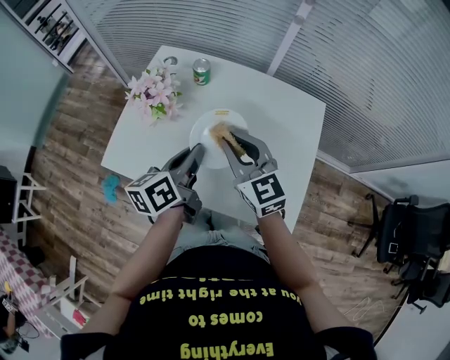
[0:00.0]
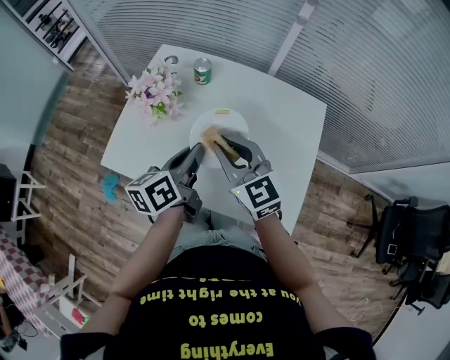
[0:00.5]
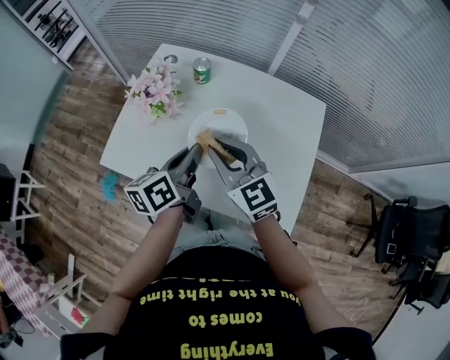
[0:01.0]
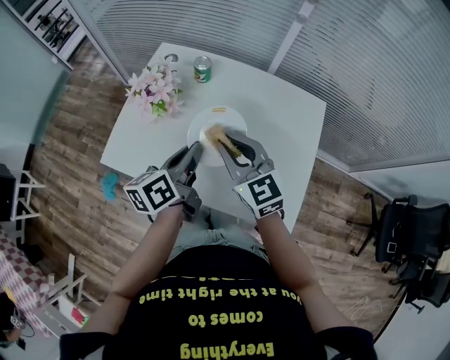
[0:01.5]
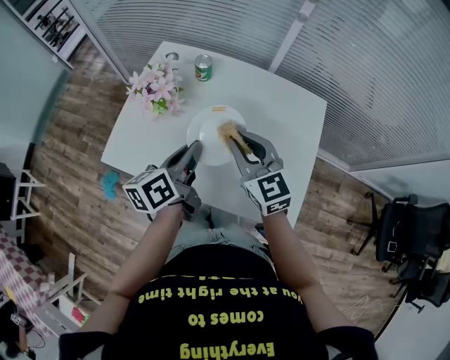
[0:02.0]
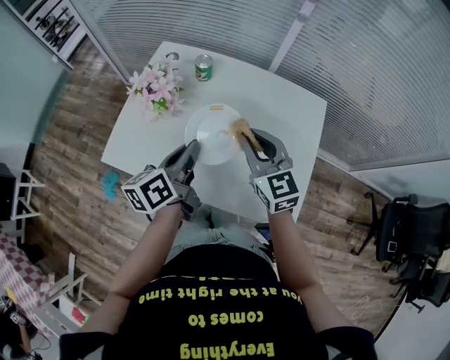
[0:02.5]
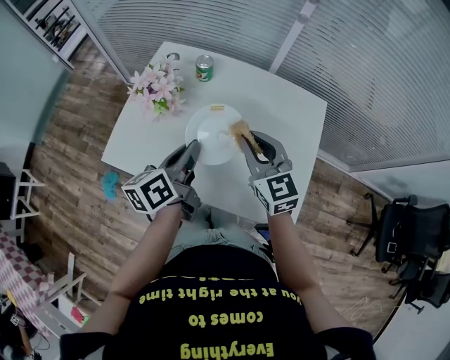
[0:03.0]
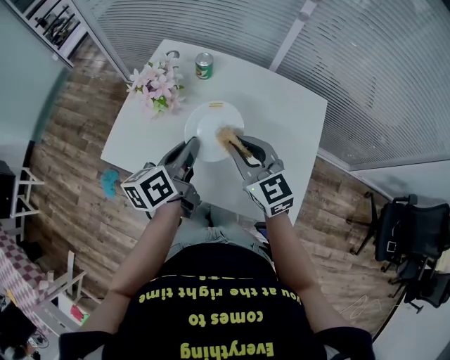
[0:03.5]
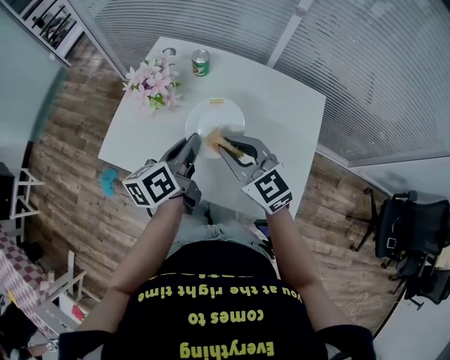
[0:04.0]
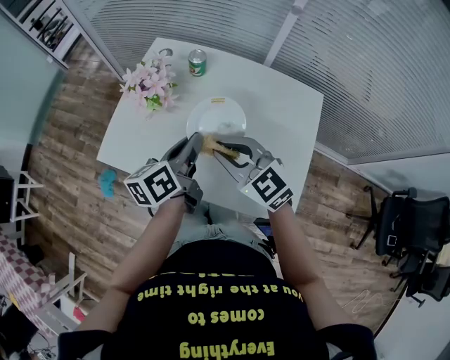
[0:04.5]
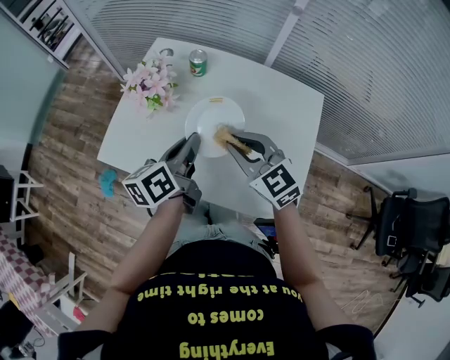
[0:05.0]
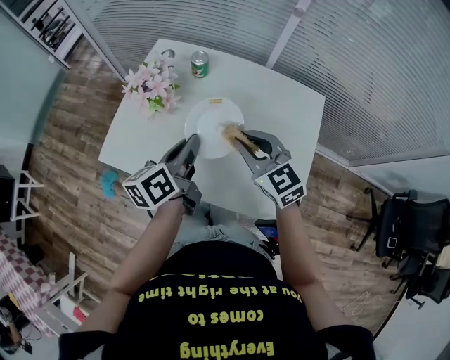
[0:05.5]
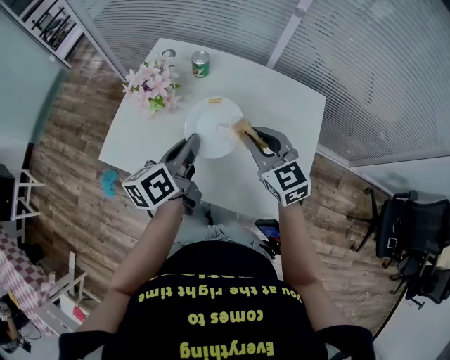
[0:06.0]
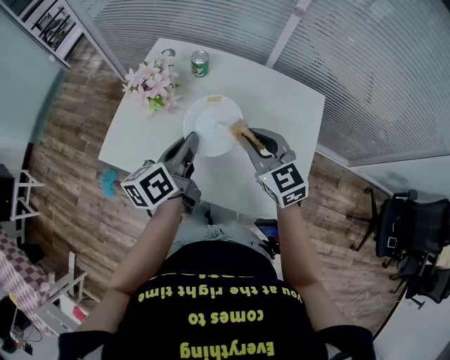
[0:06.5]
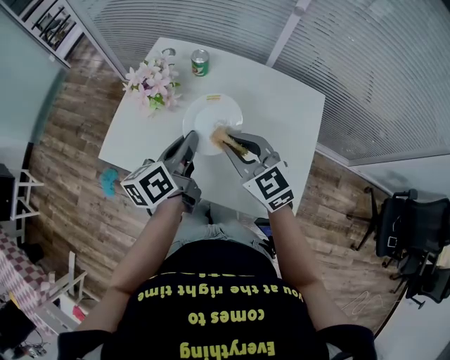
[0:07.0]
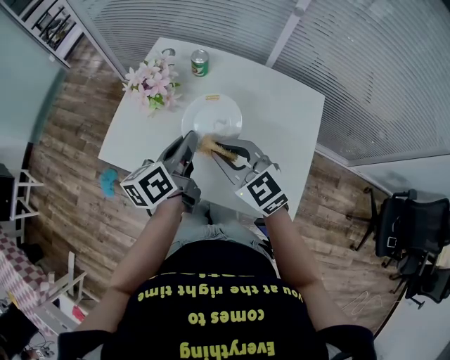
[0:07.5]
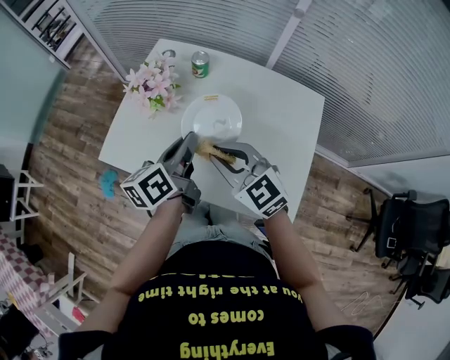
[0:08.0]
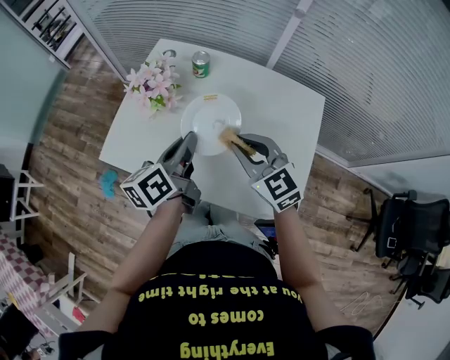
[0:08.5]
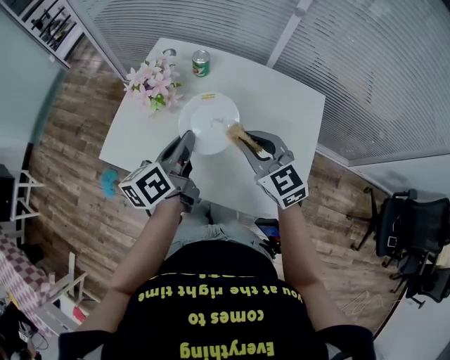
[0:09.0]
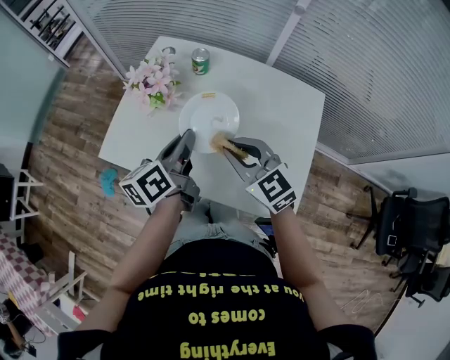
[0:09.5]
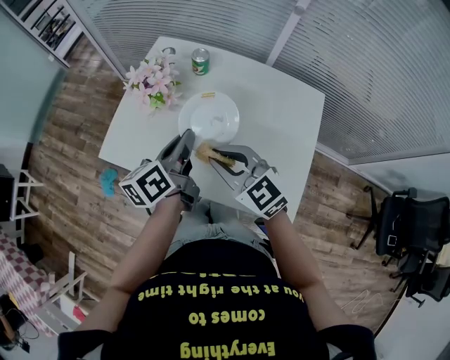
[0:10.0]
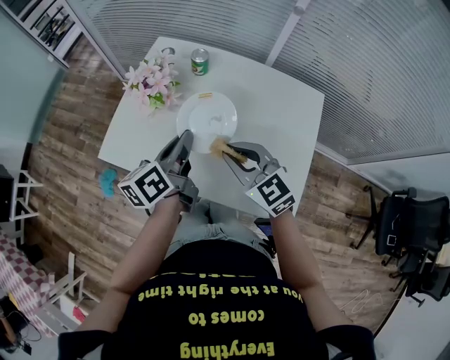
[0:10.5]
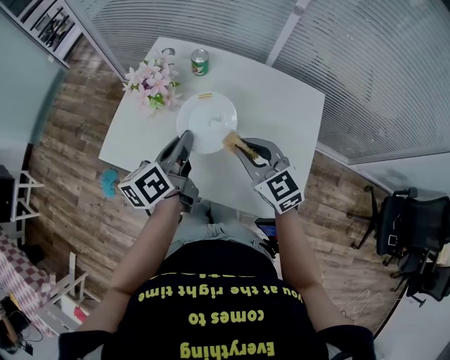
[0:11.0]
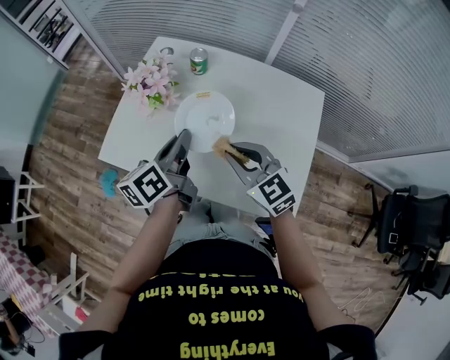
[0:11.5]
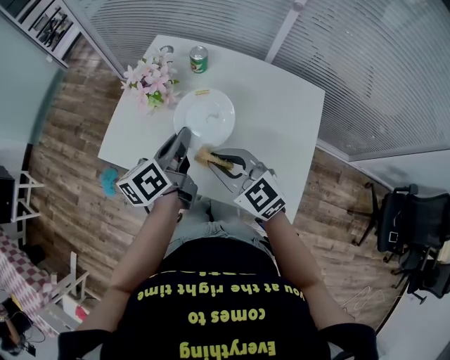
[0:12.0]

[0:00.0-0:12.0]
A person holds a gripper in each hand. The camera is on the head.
0:00.0 to 0:04.0: The grippers move only a little.
0:04.0 to 0:06.0: The right gripper is displaced to the right by approximately 5 cm.
0:06.0 to 0:08.0: The right gripper goes about 10 cm to the left.
0:08.0 to 0:10.0: The right gripper moves some 10 cm to the right and comes back.
0:10.0 to 0:12.0: The right gripper travels to the right and back again, some 10 cm each way.

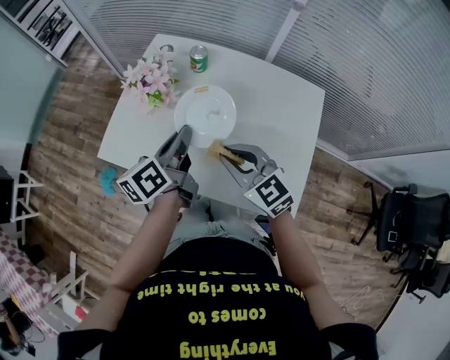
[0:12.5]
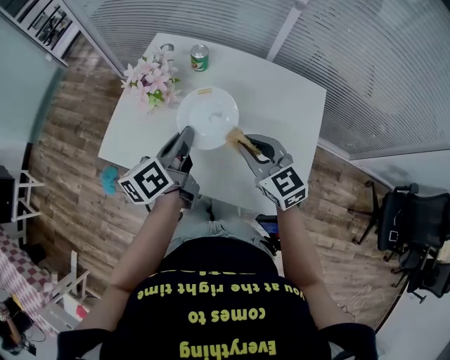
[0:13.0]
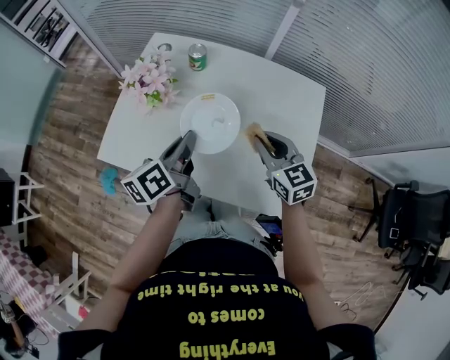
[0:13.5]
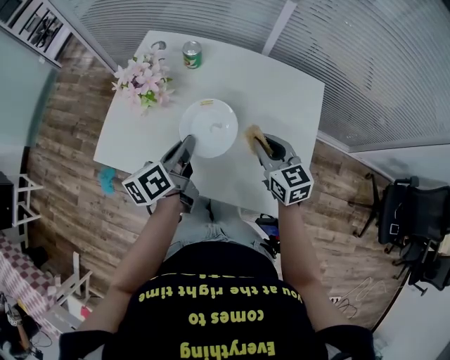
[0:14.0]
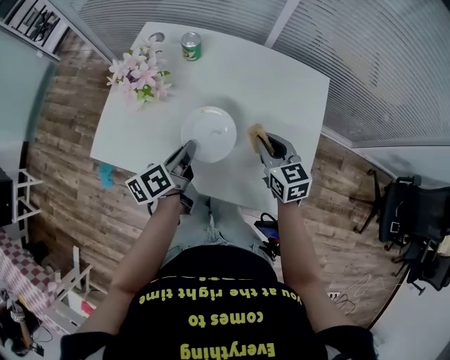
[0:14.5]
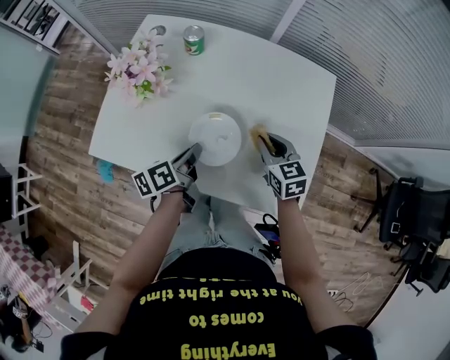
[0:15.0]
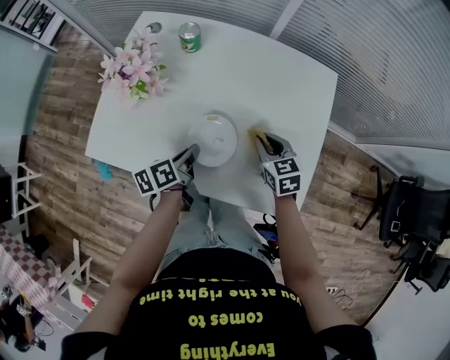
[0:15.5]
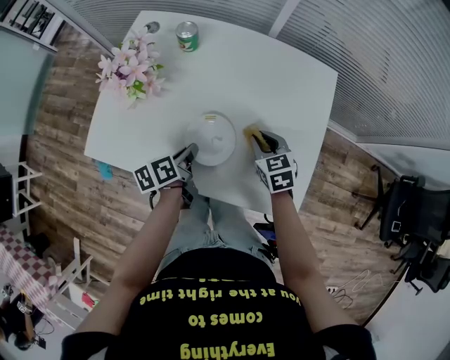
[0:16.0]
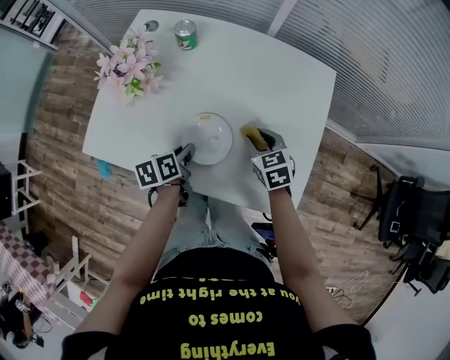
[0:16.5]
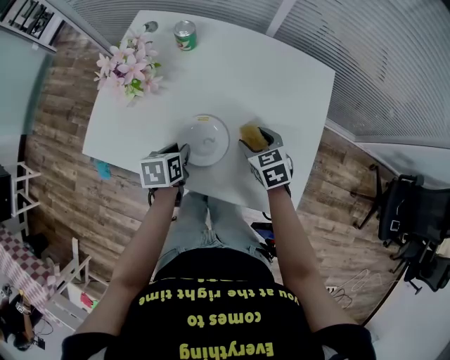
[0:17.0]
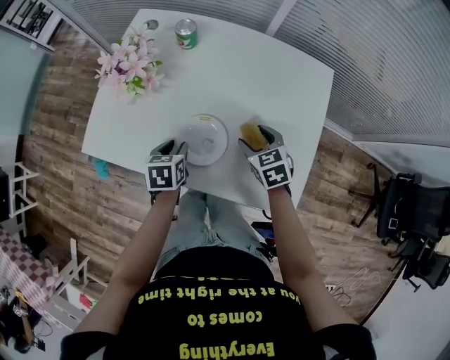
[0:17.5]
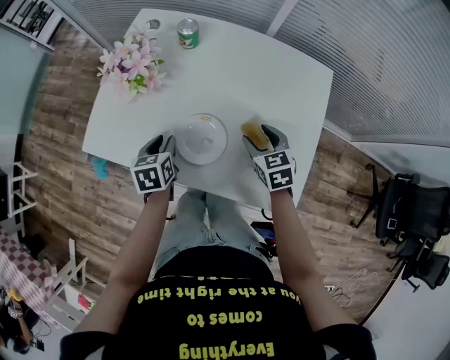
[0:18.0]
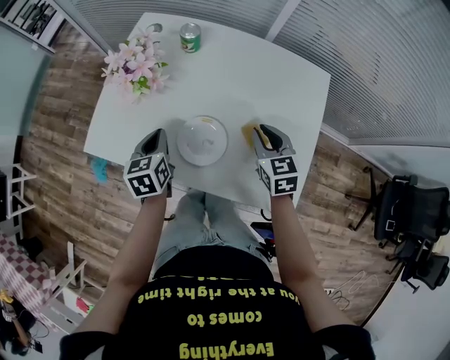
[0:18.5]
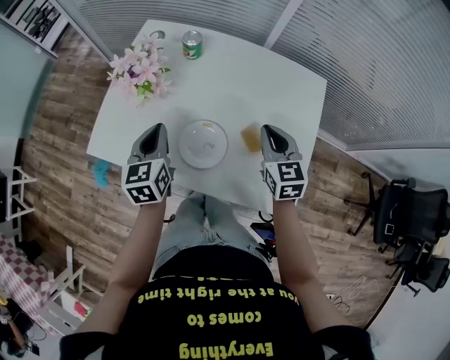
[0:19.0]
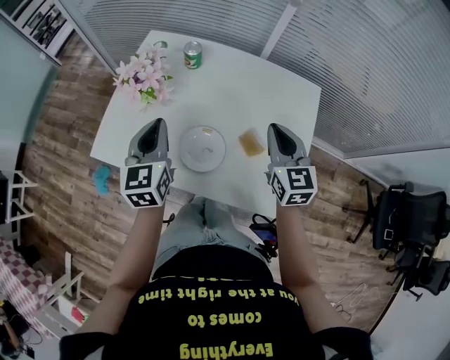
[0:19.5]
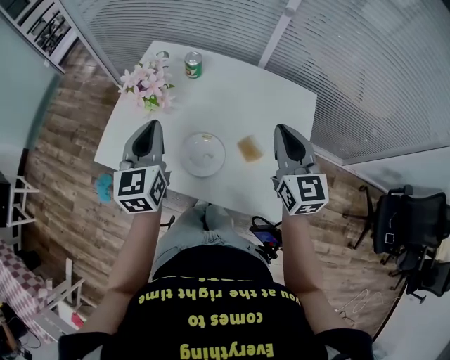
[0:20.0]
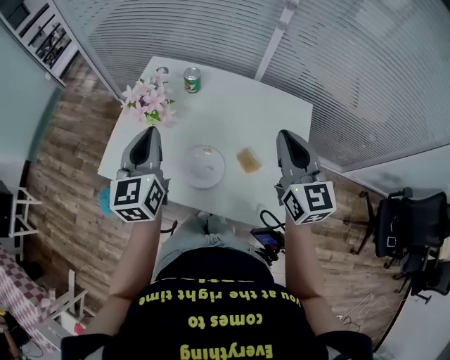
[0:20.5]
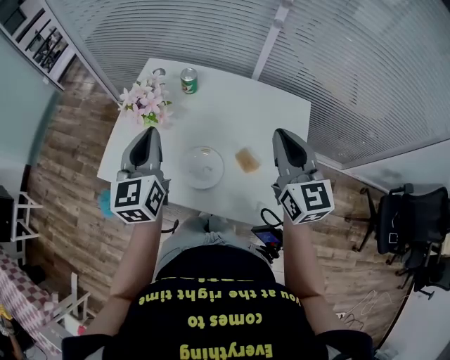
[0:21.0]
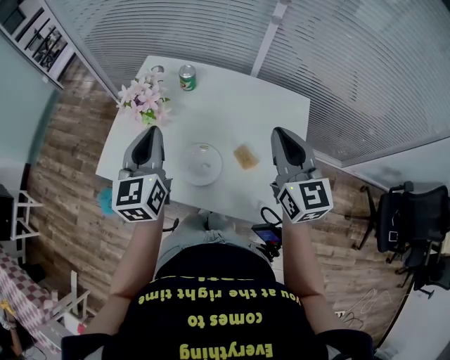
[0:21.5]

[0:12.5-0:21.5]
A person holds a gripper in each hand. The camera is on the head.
0:12.5 to 0:14.5: The left gripper shifts approximately 10 cm downward, while the right gripper heads to the right and downward, covering some 15 cm, and swivels roughly 30 degrees.
0:14.5 to 0:17.0: Both grippers move downward, some 10 cm. The right gripper rotates some 20 degrees, and opens its fingers; the left gripper angles its fingers downward, by approximately 30 degrees, and opens up.
0:17.0 to 0:19.5: Both grippers move upward, some 20 cm. The left gripper angles its fingers upward, by about 40 degrees, and closes its fingers, while the right gripper tips its fingers upward by approximately 30 degrees, and closes.
0:19.5 to 0:21.5: Both grippers travel together upward, approximately 10 cm.

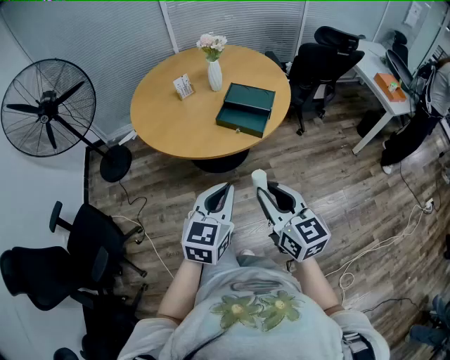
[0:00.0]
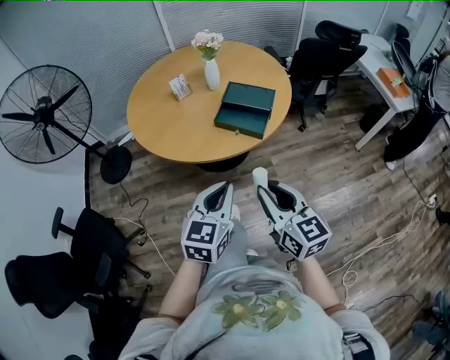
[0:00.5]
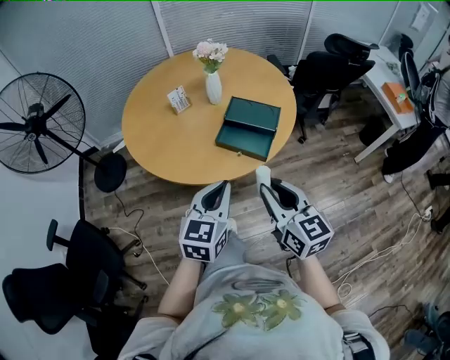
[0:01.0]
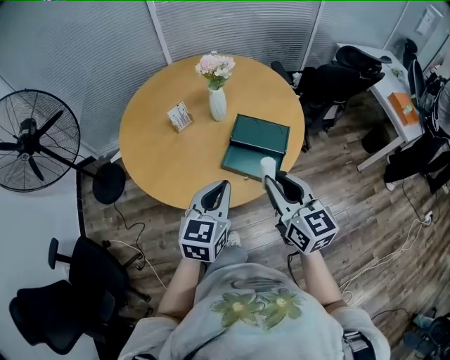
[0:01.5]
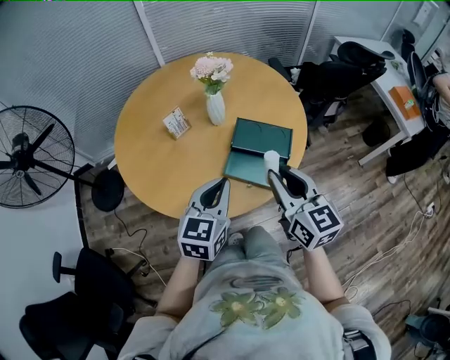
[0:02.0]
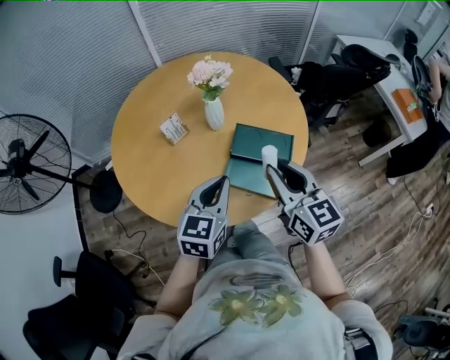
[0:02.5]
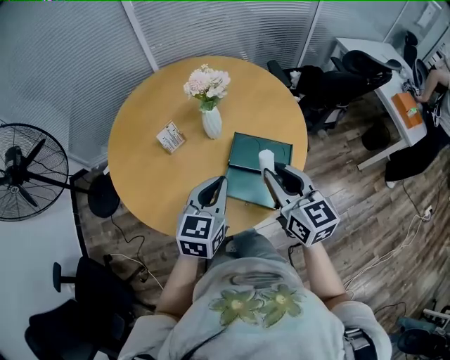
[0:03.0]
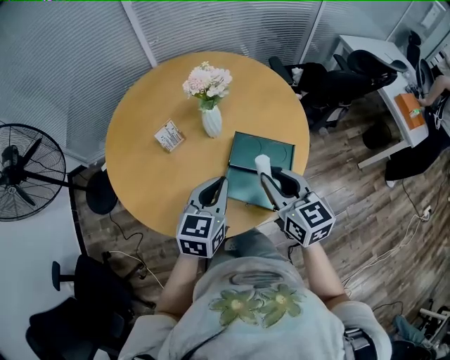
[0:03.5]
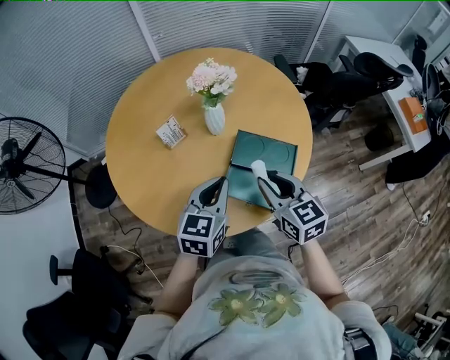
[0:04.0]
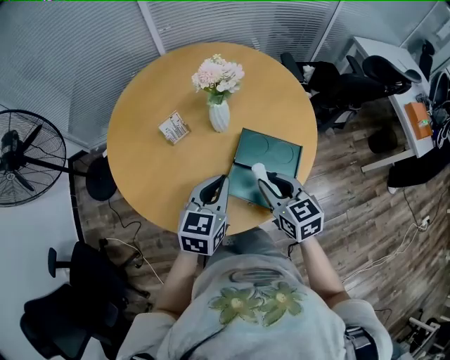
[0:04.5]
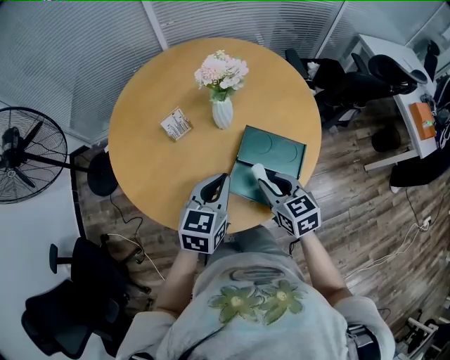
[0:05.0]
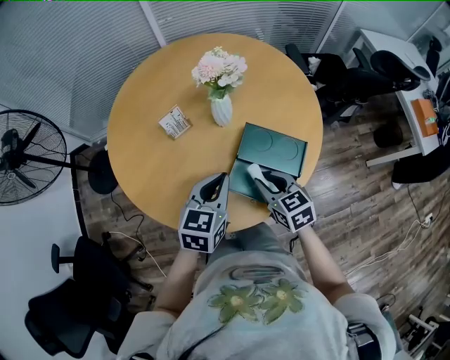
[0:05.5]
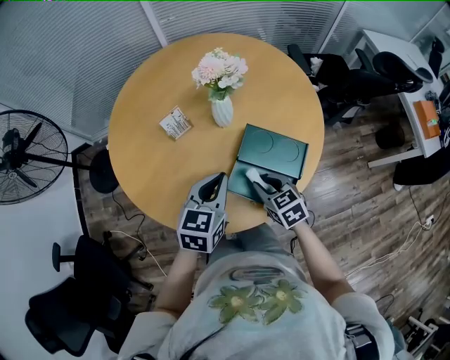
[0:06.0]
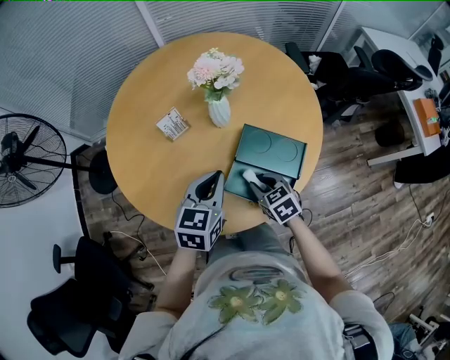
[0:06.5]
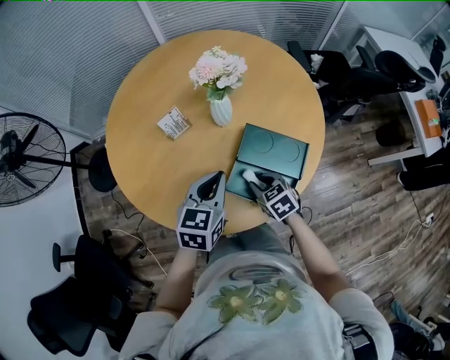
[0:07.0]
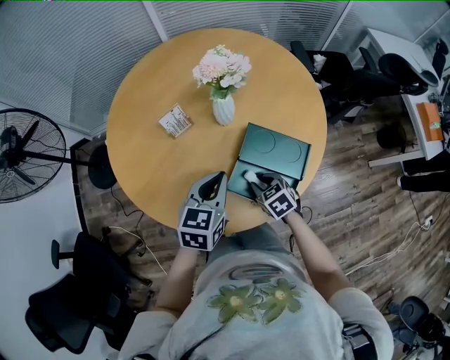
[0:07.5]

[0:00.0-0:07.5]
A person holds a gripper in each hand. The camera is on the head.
0:00.0 to 0:02.0: Both grippers travel together forward, some 40 cm.
0:02.0 to 0:04.0: The right gripper heads forward and downward, covering roughly 15 cm. The left gripper shifts about 10 cm forward.
0:04.0 to 0:05.5: The right gripper heads downward, covering some 10 cm.
0:05.5 to 0:07.5: The right gripper is displaced downward by some 10 cm, and swivels roughly 20 degrees.
